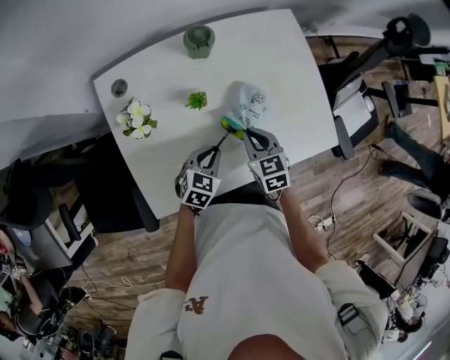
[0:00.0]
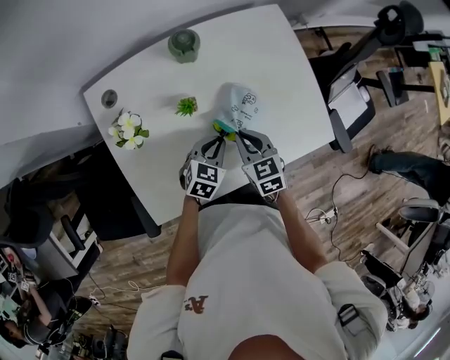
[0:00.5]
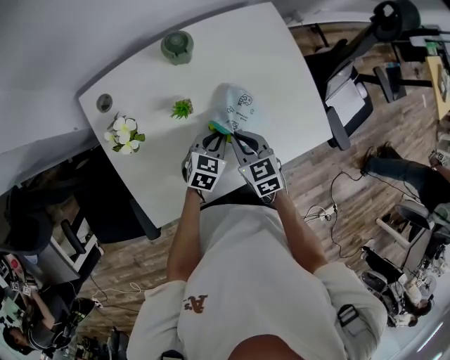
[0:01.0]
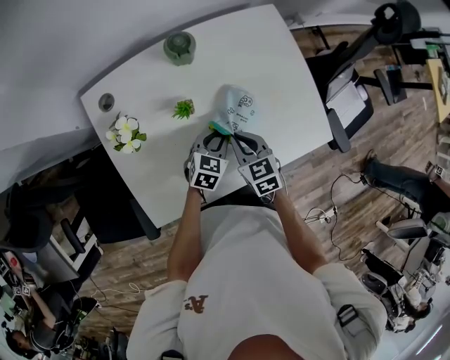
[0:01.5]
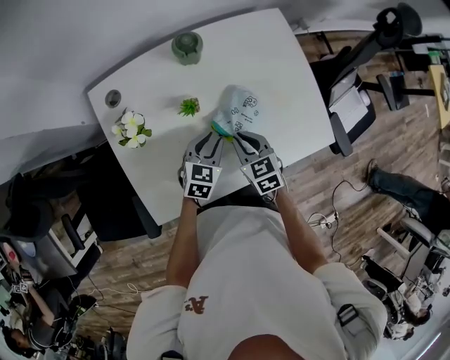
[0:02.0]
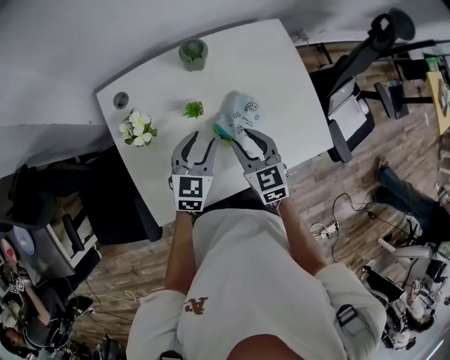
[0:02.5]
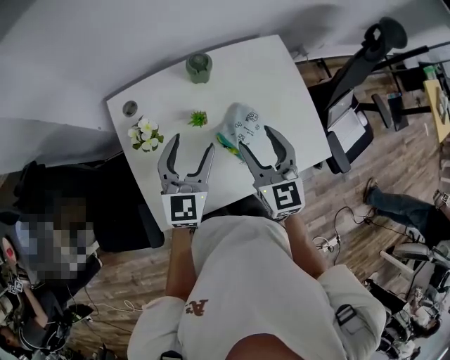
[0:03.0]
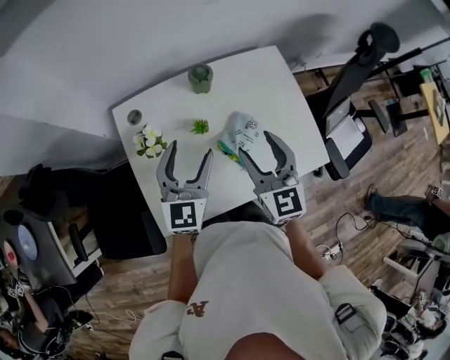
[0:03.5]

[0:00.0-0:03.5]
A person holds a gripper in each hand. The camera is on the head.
0:00.0 to 0:02.0: The left gripper moves forward, some 5 cm.
0:02.0 to 0:03.5: The two grippers go about 25 cm upward. The right gripper angles its fingers upward, by roughly 30 degrees, and opens, while the left gripper changes its angle by approximately 40 degrees, and opens up.

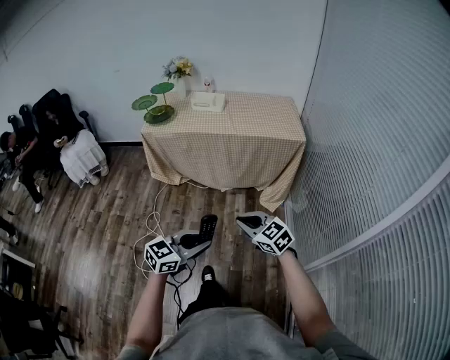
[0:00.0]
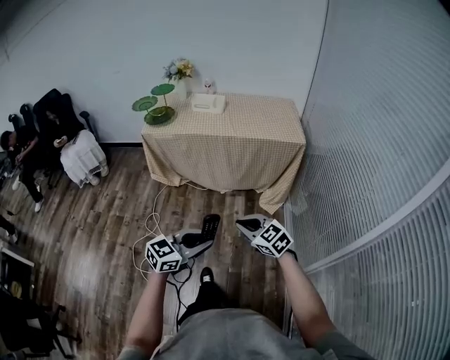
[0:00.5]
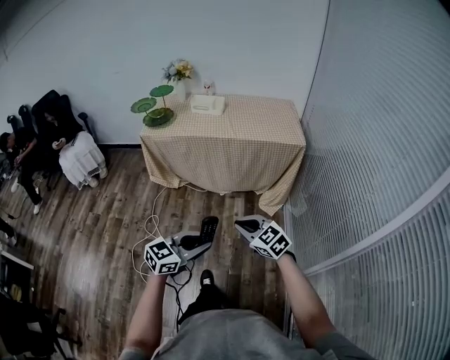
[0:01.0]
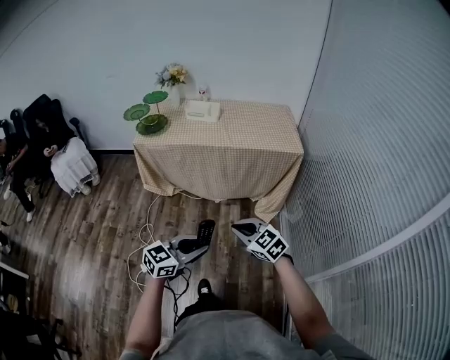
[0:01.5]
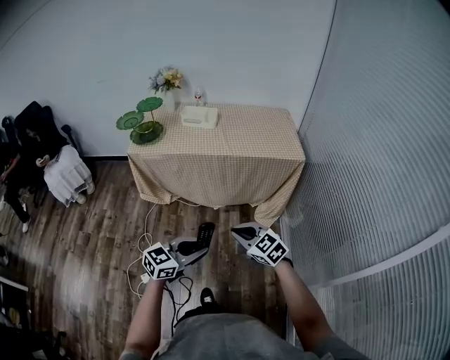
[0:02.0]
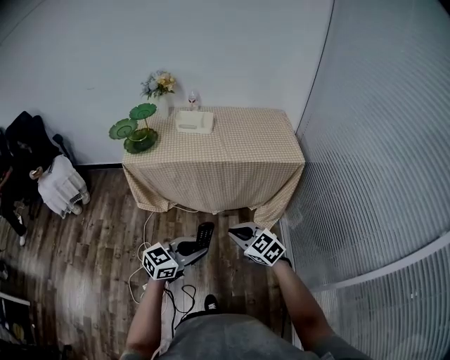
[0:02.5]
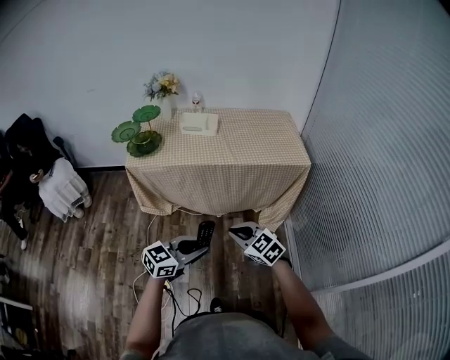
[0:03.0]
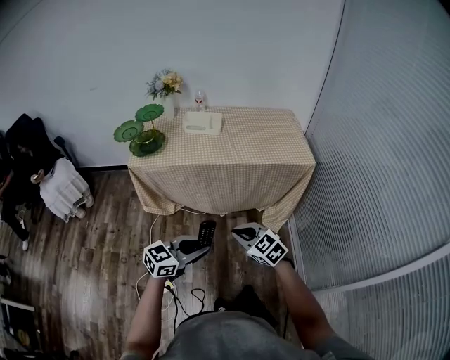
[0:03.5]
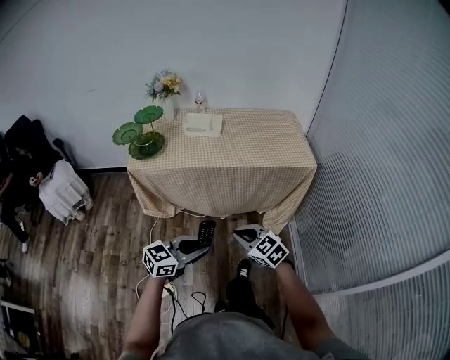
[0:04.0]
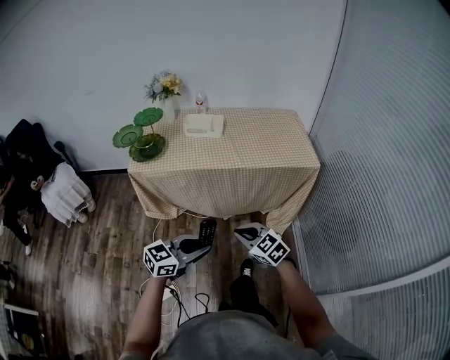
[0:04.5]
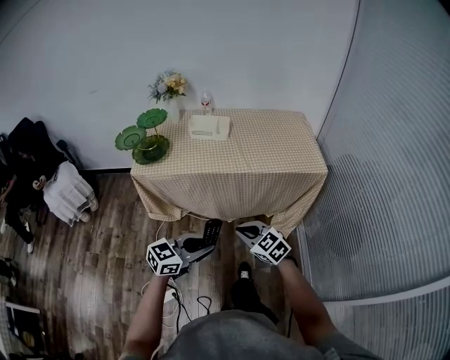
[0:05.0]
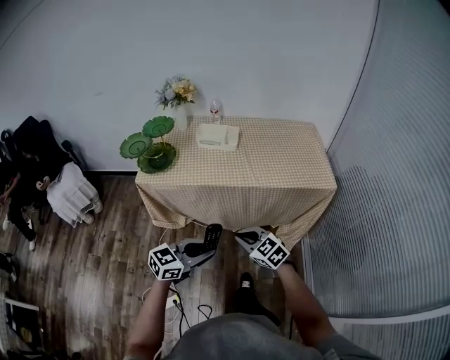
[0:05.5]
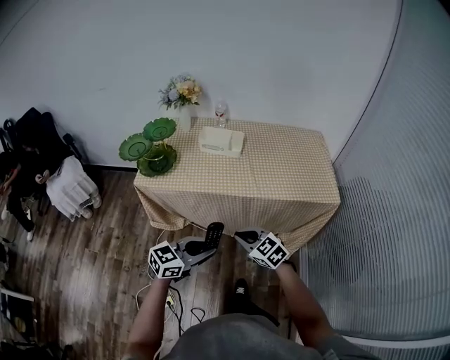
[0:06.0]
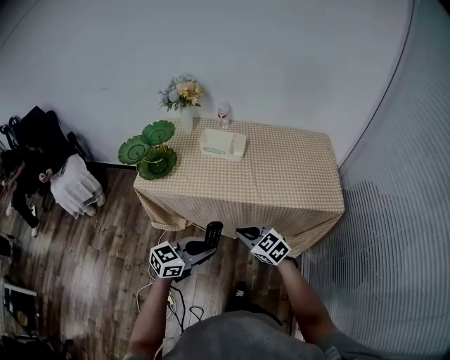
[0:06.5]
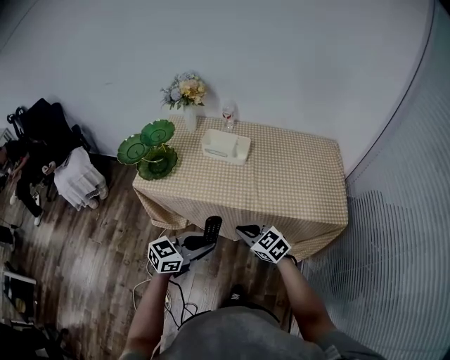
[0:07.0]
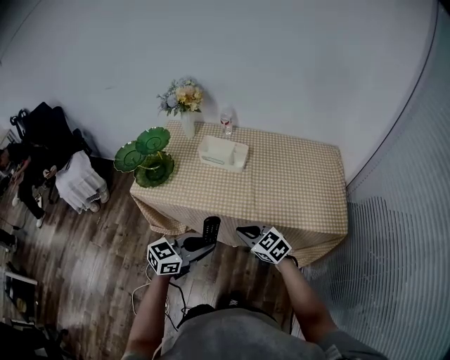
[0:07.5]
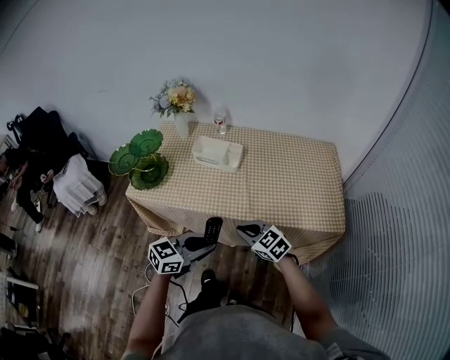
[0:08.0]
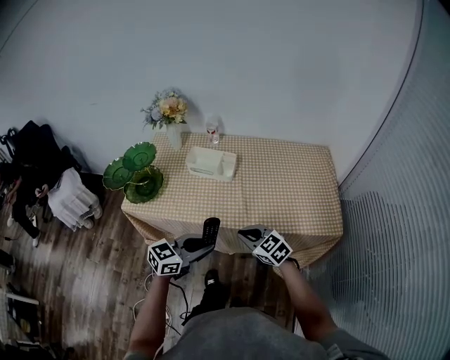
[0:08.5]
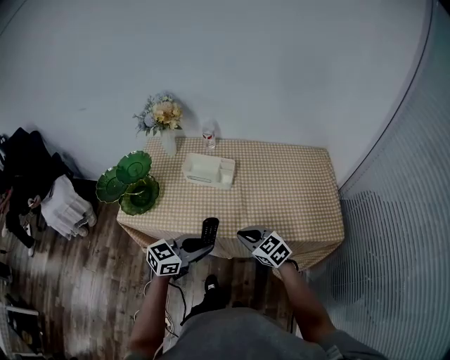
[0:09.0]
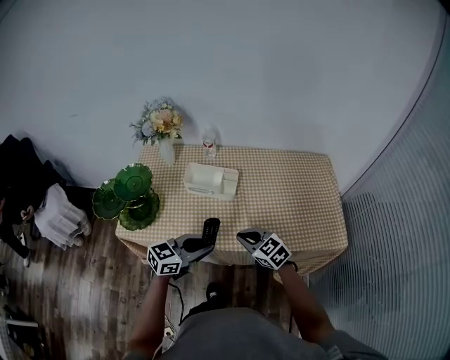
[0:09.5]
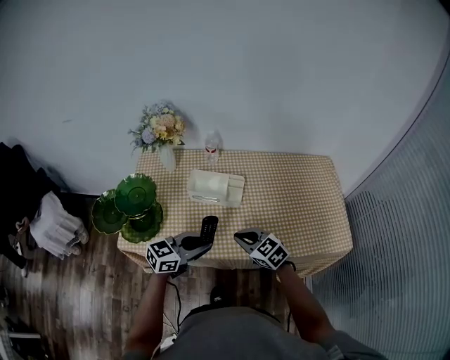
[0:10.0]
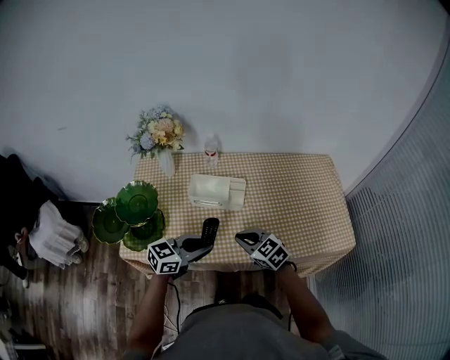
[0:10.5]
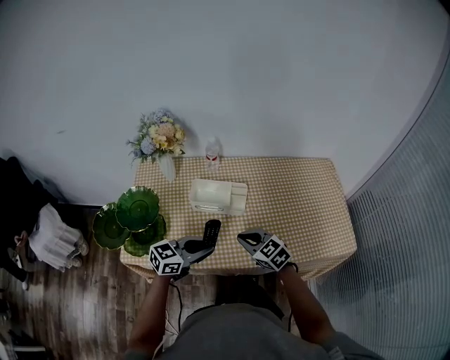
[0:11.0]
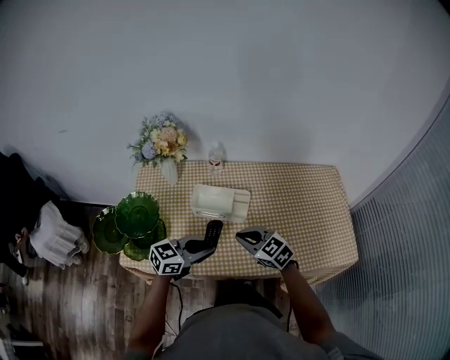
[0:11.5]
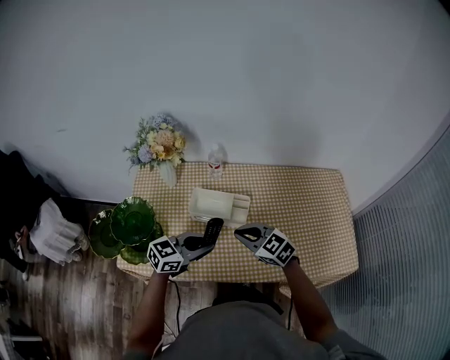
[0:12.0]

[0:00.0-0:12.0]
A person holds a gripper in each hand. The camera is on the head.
0:00.0 to 0:02.0: The right gripper travels forward and to the left by some 15 cm. The left gripper moves forward, roughly 15 cm.
0:02.0 to 0:04.0: The grippers both shift forward and to the left by roughly 15 cm.
0:04.0 to 0:06.0: Both grippers move forward, some 20 cm.
0:06.0 to 0:08.0: Both grippers travel together forward and to the right, some 15 cm.
0:08.0 to 0:10.0: Both grippers travel together forward and to the left, some 20 cm.
0:10.0 to 0:12.0: The two grippers go approximately 10 cm forward.

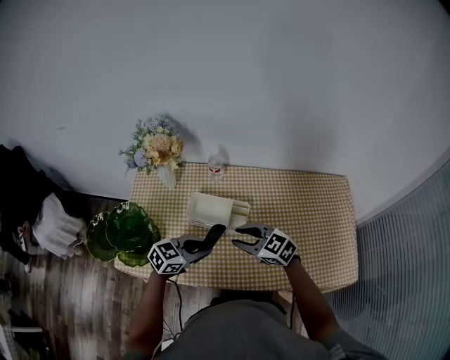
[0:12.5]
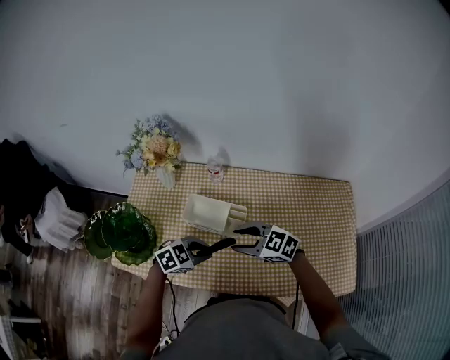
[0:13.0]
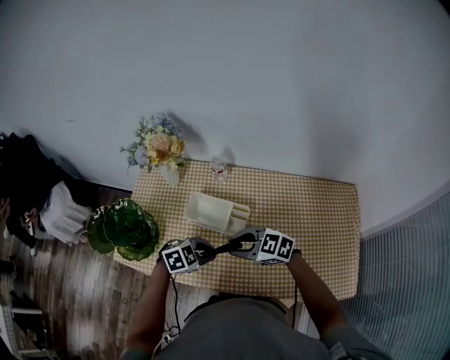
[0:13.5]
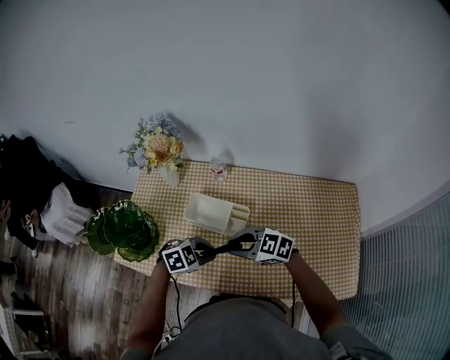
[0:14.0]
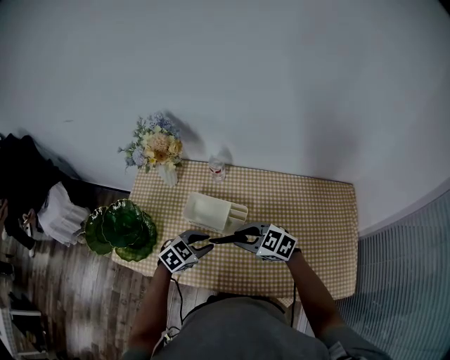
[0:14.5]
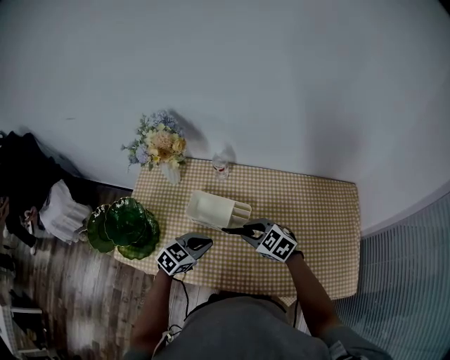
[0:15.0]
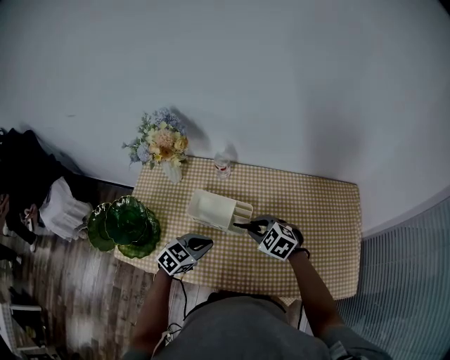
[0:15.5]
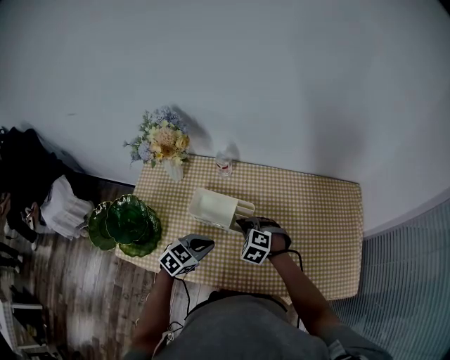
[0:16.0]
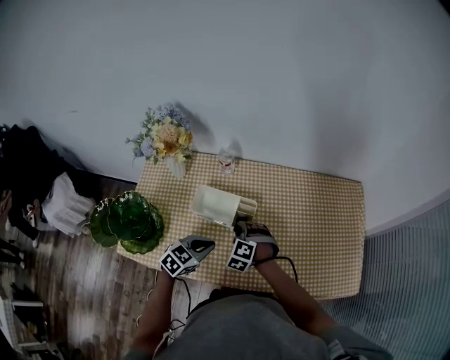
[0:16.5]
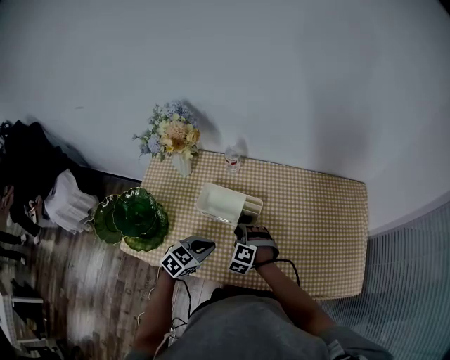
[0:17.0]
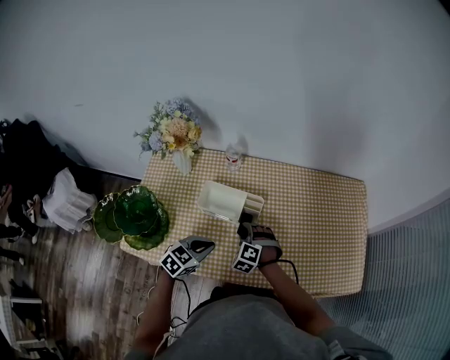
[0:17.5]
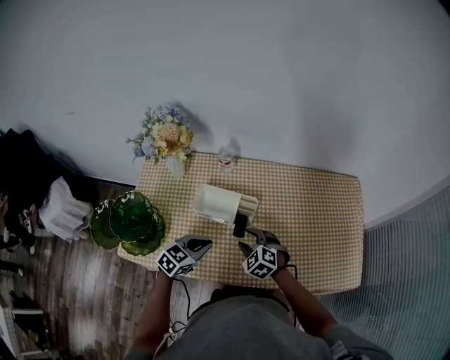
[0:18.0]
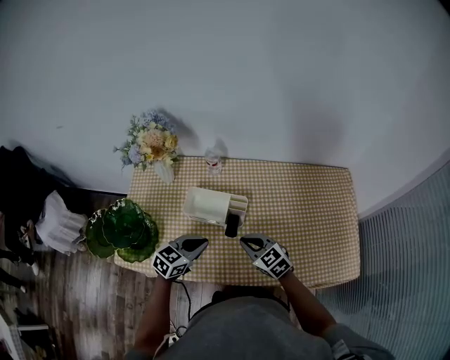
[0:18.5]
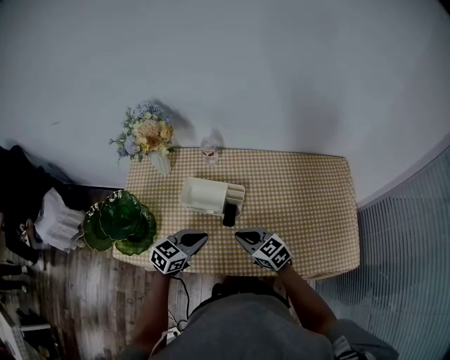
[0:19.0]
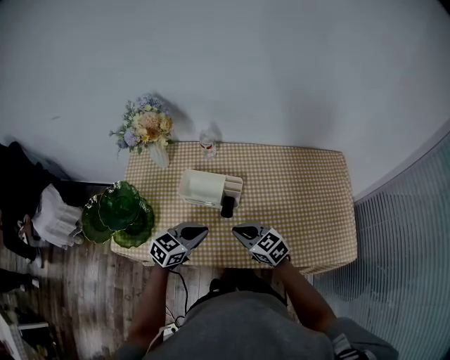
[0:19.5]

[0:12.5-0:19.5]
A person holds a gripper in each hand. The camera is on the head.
0:12.5 to 0:14.5: The left gripper changes place by roughly 5 cm, and rotates some 20 degrees.
0:14.5 to 0:16.0: The right gripper shifts some 10 cm downward, and changes its angle by about 40 degrees. The left gripper closes its fingers.
0:16.0 to 0:17.5: The right gripper shifts by some 5 cm.
0:17.5 to 0:19.5: The right gripper travels upward and backward by about 10 cm, swivels approximately 60 degrees, and closes.

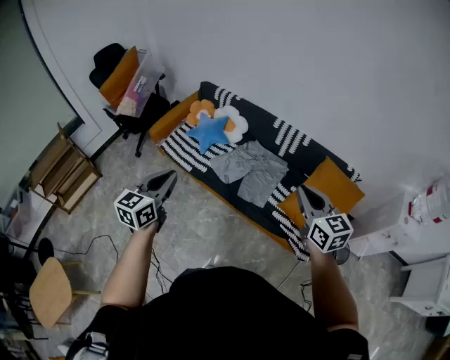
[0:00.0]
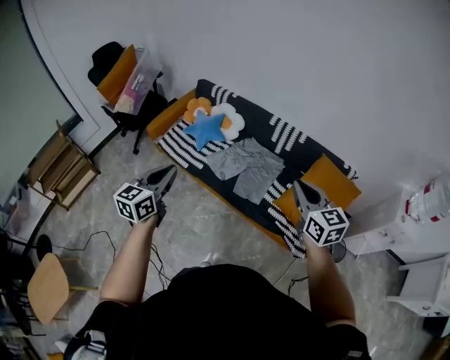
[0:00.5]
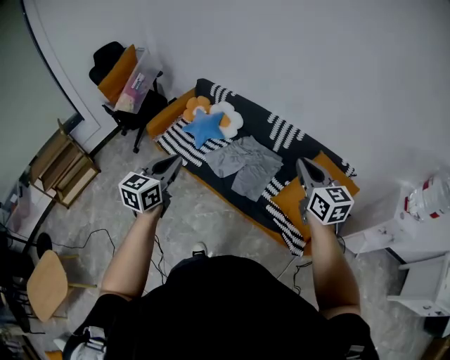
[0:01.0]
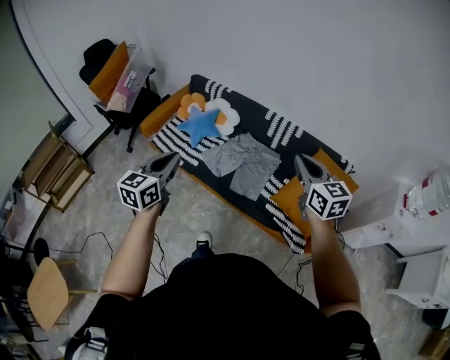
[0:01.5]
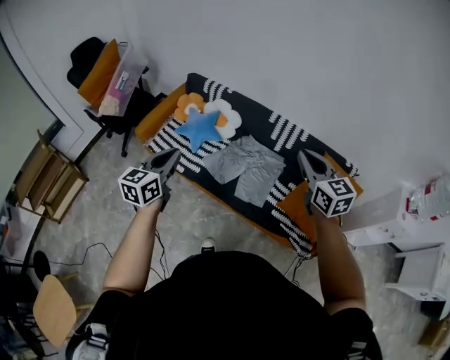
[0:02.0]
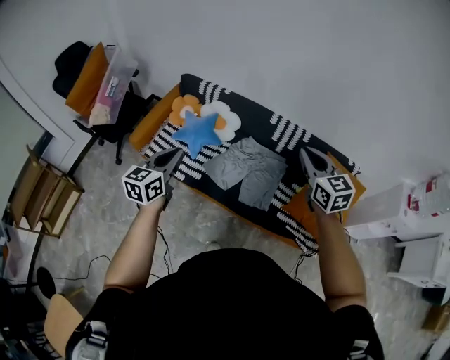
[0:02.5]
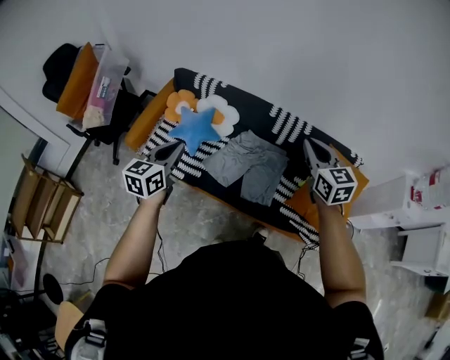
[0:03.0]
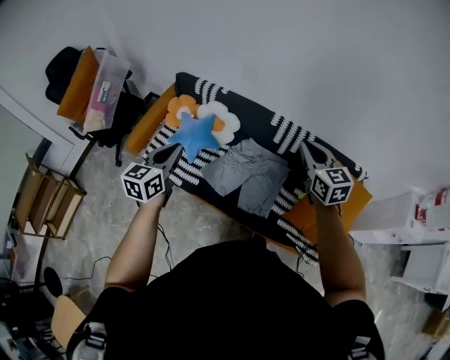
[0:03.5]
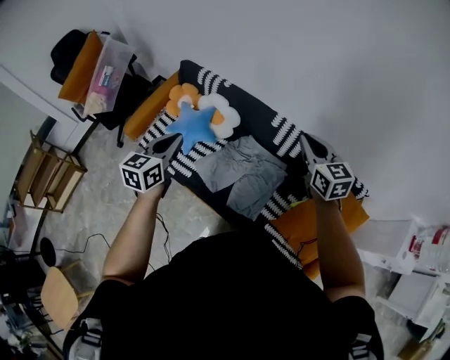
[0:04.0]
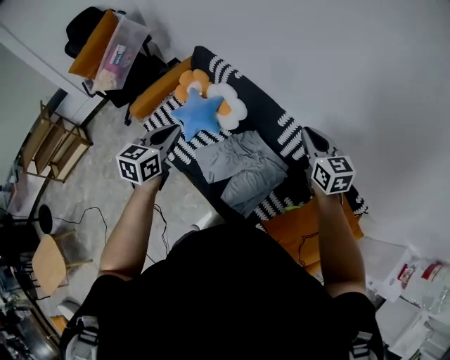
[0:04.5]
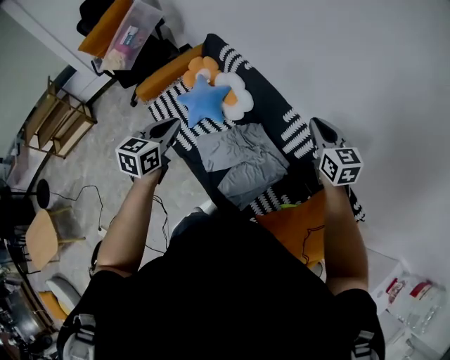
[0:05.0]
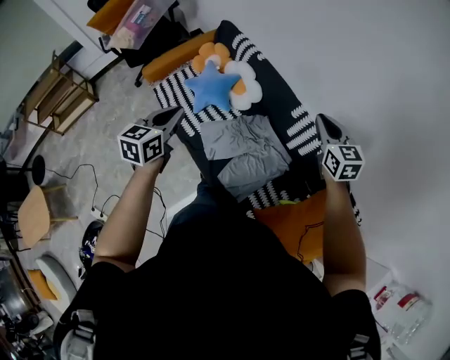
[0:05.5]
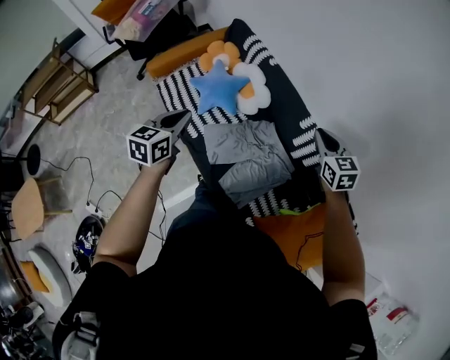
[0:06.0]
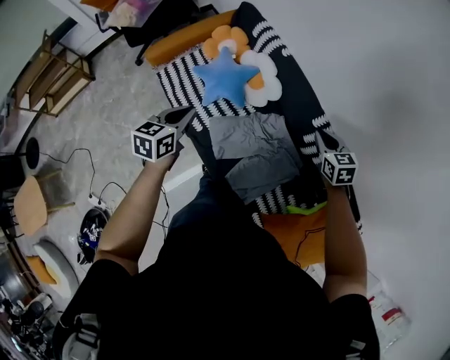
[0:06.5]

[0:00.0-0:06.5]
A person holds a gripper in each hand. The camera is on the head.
0:00.0 to 0:02.0: The grippers both shift forward by about 15 cm.
0:02.0 to 0:04.5: The two grippers go approximately 35 cm forward.
0:04.5 to 0:06.5: The left gripper shifts approximately 20 cm downward, to the left and forward. The right gripper shifts approximately 25 cm downward, forward and to the left, and changes its angle by approximately 30 degrees.
